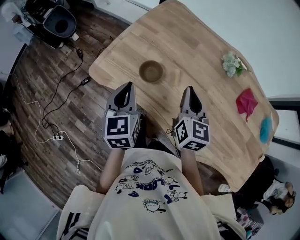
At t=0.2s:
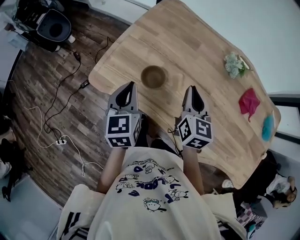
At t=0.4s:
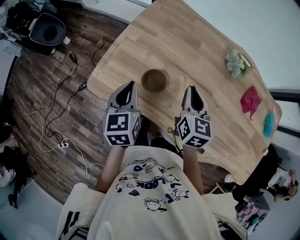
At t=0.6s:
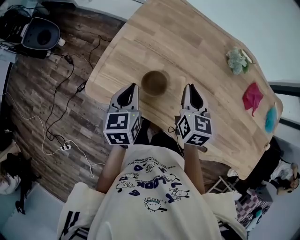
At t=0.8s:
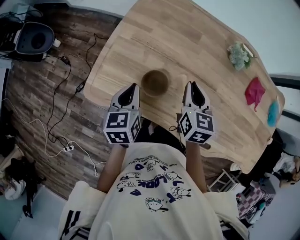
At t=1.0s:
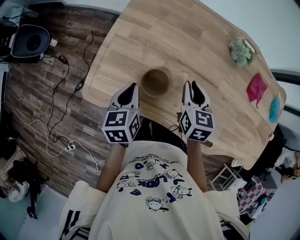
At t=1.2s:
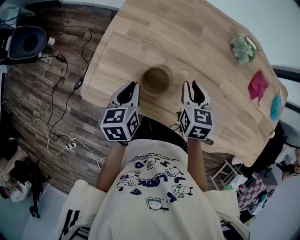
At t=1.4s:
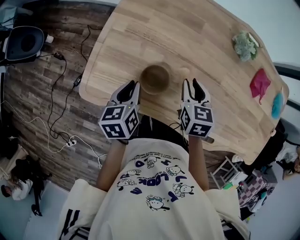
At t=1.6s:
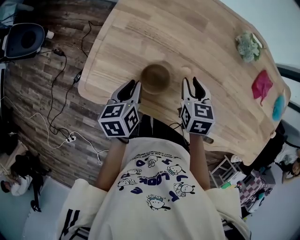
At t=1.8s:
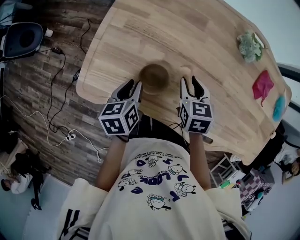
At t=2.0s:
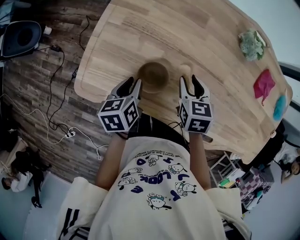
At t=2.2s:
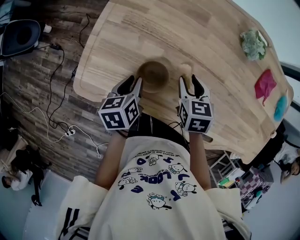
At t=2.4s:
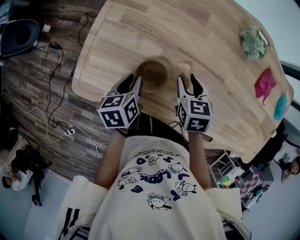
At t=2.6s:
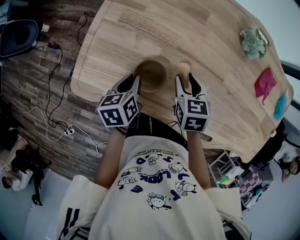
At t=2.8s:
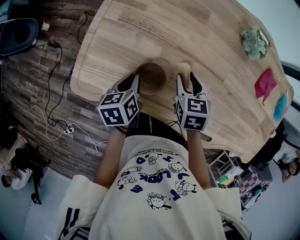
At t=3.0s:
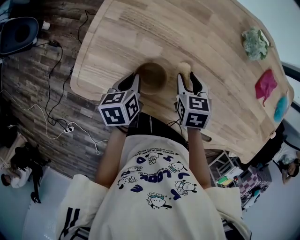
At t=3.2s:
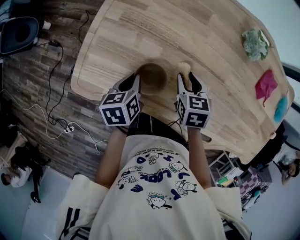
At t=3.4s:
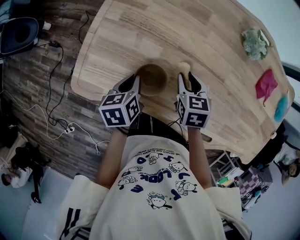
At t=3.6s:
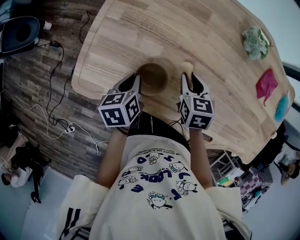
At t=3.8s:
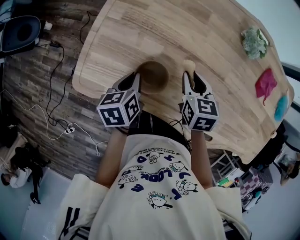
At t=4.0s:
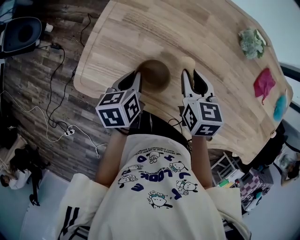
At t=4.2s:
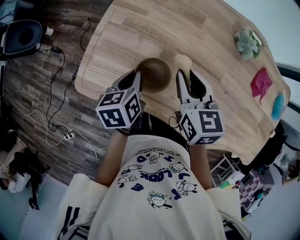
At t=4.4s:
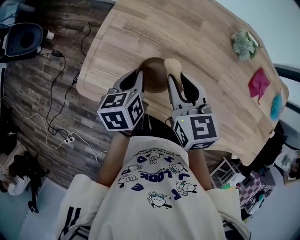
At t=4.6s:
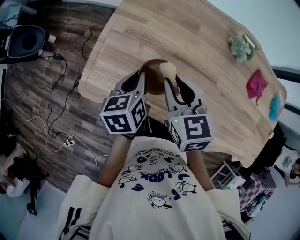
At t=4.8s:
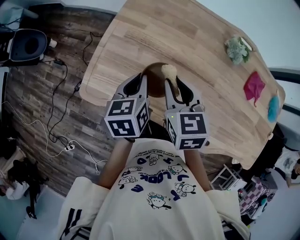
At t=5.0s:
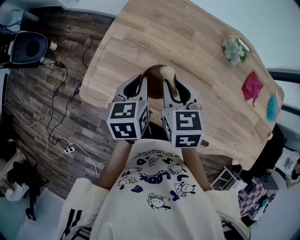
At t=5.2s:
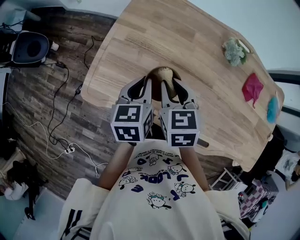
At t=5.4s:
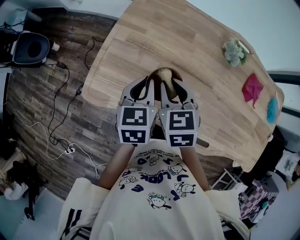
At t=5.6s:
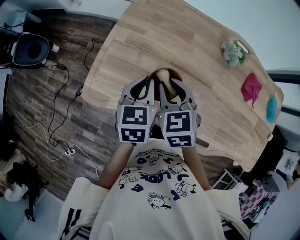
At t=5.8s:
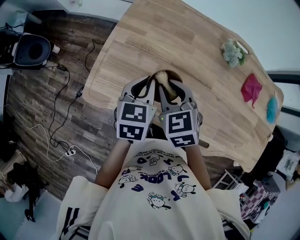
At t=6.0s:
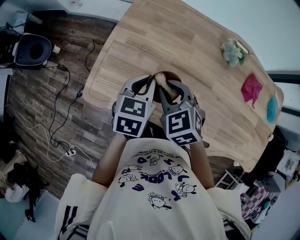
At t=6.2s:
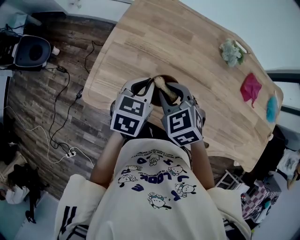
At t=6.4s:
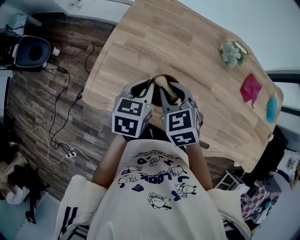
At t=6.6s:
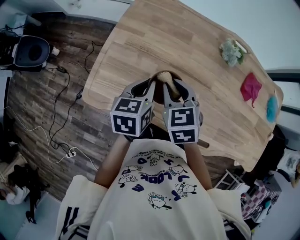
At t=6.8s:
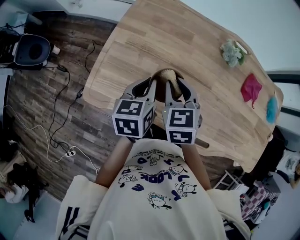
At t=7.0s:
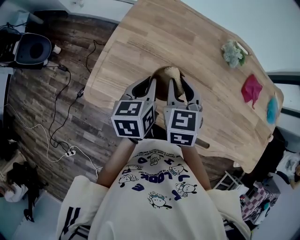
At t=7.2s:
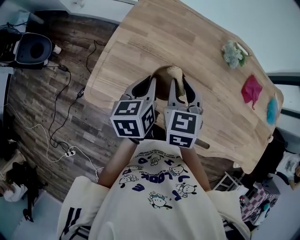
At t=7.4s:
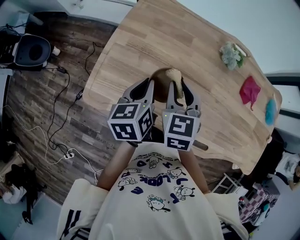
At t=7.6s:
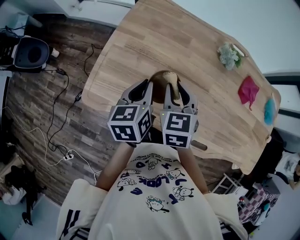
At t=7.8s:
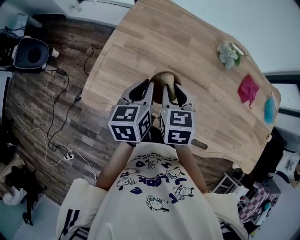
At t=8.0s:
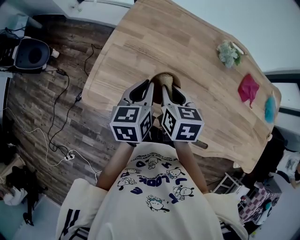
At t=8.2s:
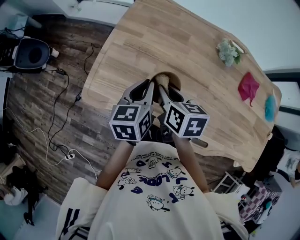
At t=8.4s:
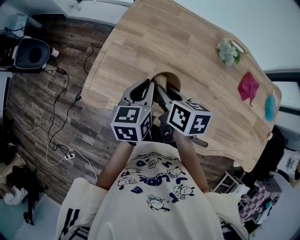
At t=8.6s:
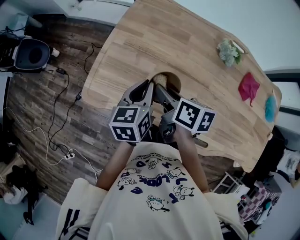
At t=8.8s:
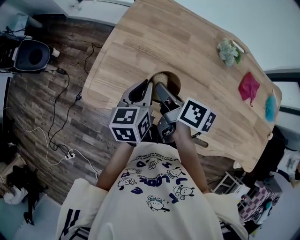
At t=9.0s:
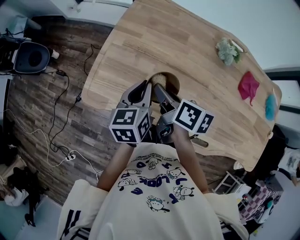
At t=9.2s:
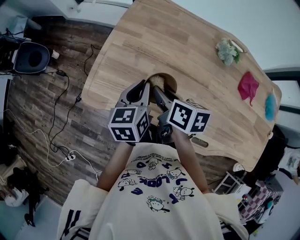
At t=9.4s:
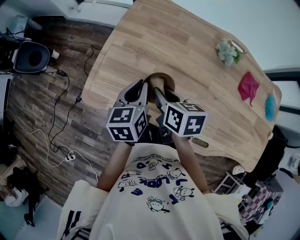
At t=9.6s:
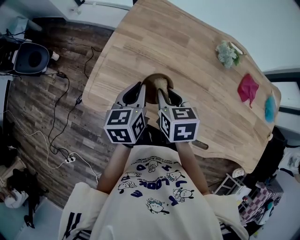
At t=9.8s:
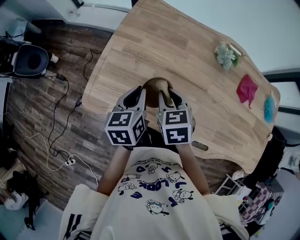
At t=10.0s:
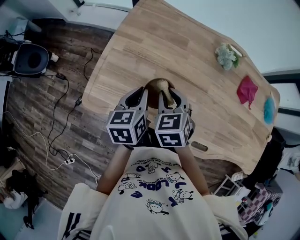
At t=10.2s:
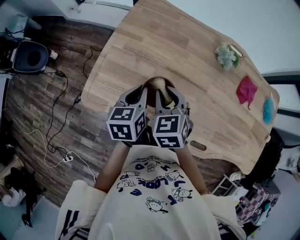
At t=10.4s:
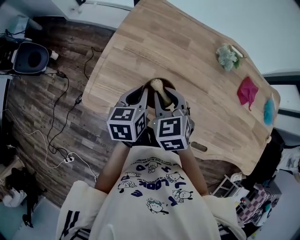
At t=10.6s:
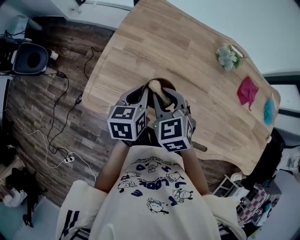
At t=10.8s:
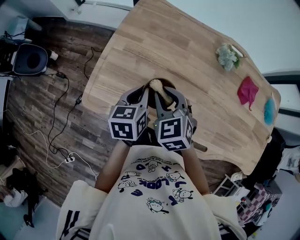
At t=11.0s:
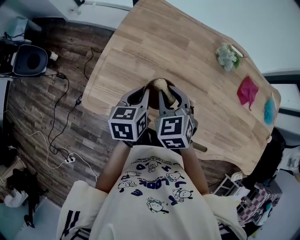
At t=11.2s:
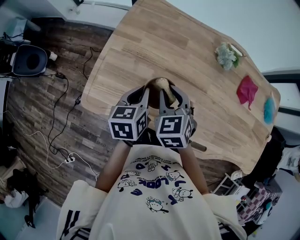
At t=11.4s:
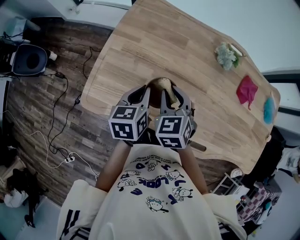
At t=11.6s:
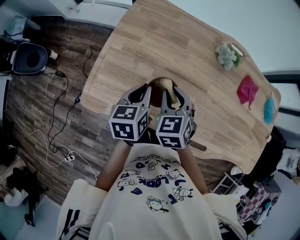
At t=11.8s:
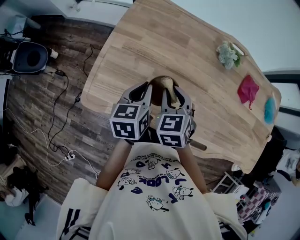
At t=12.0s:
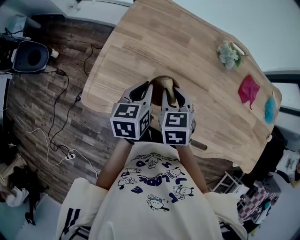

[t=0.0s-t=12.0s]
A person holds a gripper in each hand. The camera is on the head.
t=0.0s to t=1.6s: Both grippers move downward and forward, some 20 cm. The left gripper changes its angle by approximately 40 degrees; the right gripper tips its fingers downward by approximately 30 degrees, and opens up.
t=1.6s to t=3.0s: The left gripper moves roughly 5 cm.
t=3.0s to t=4.4s: The right gripper moves upward and to the left, roughly 20 cm, and changes its angle by about 20 degrees. The left gripper shifts approximately 10 cm upward.
t=4.4s to t=6.0s: The left gripper goes approximately 5 cm upward, and rotates some 30 degrees. Meanwhile the right gripper rotates some 30 degrees.
t=6.0s to t=7.6s: The left gripper rotates some 20 degrees, while the right gripper changes place by roughly 5 cm, and swivels approximately 30 degrees.
t=7.6s to t=9.0s: The right gripper rotates around the line of its fingers by about 60 degrees, clockwise from behind.
t=9.0s to t=10.4s: The right gripper rotates around the line of its fingers by roughly 60 degrees, counterclockwise from behind.
t=10.4s to t=12.0s: The grippers move only a little.

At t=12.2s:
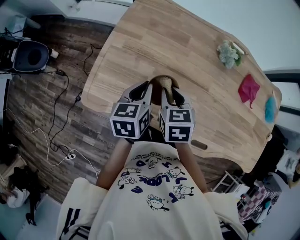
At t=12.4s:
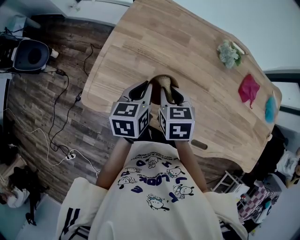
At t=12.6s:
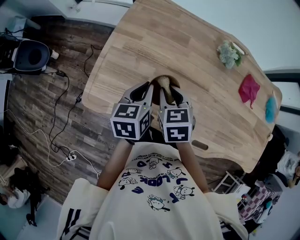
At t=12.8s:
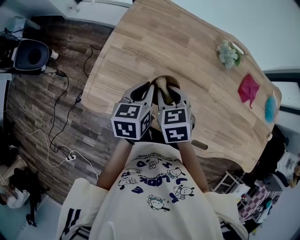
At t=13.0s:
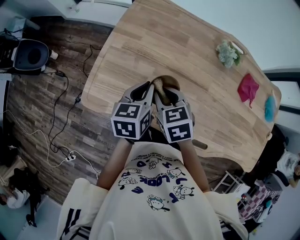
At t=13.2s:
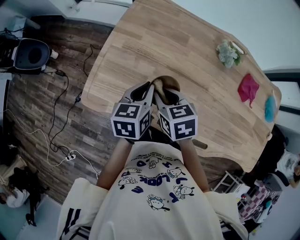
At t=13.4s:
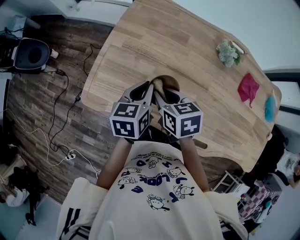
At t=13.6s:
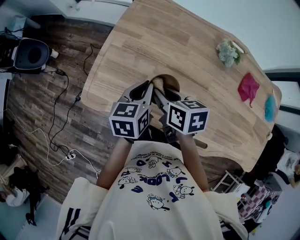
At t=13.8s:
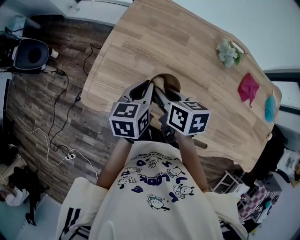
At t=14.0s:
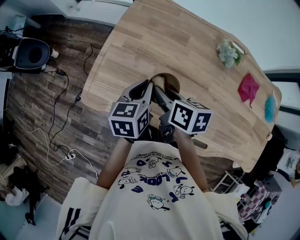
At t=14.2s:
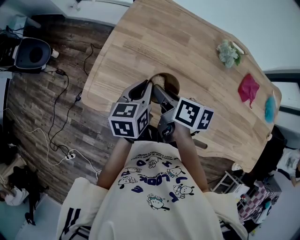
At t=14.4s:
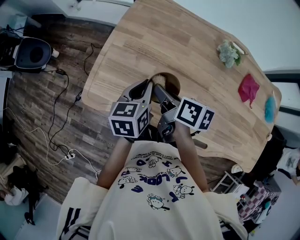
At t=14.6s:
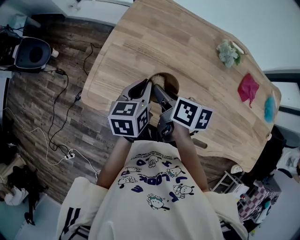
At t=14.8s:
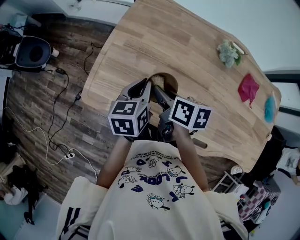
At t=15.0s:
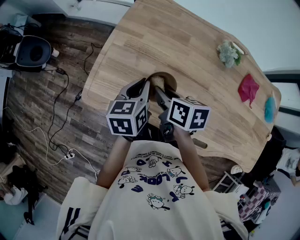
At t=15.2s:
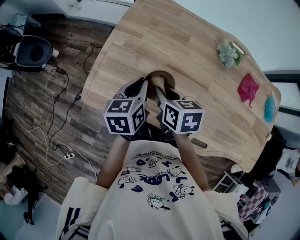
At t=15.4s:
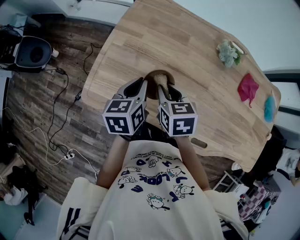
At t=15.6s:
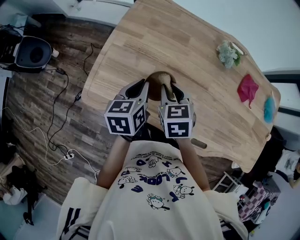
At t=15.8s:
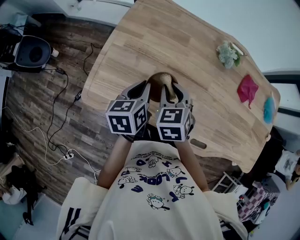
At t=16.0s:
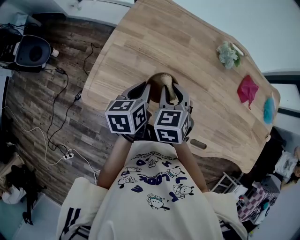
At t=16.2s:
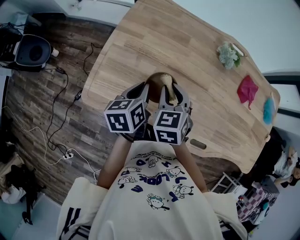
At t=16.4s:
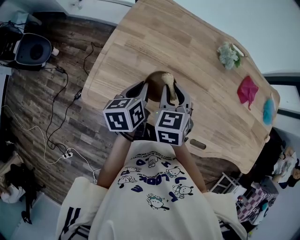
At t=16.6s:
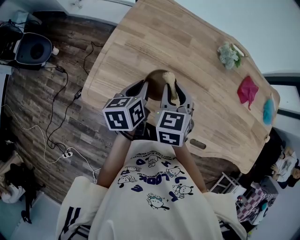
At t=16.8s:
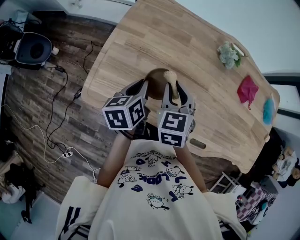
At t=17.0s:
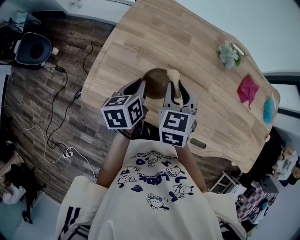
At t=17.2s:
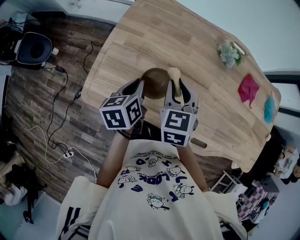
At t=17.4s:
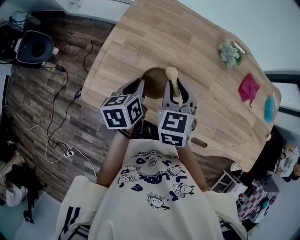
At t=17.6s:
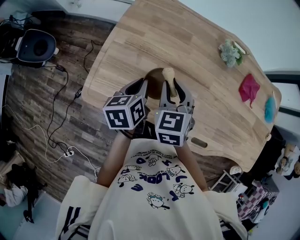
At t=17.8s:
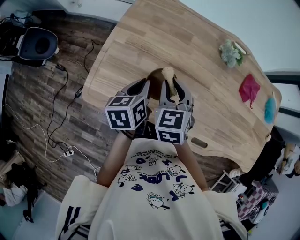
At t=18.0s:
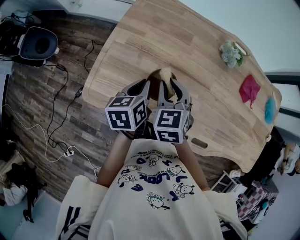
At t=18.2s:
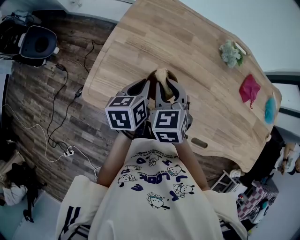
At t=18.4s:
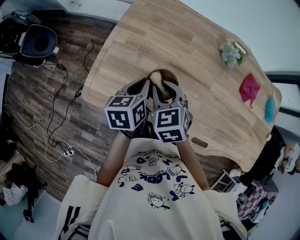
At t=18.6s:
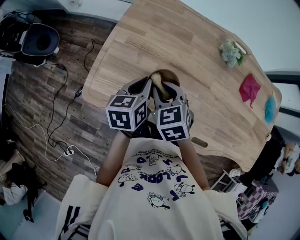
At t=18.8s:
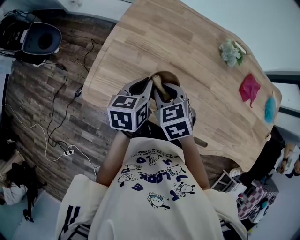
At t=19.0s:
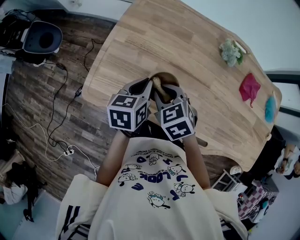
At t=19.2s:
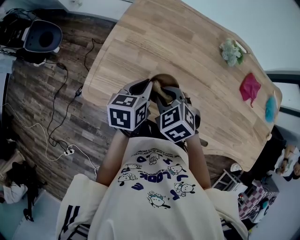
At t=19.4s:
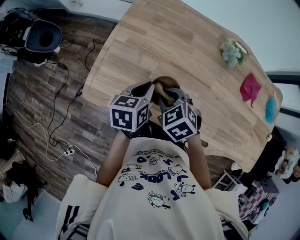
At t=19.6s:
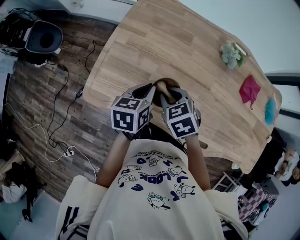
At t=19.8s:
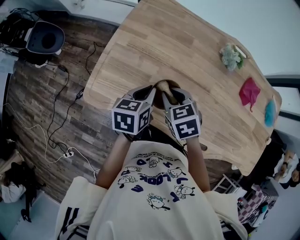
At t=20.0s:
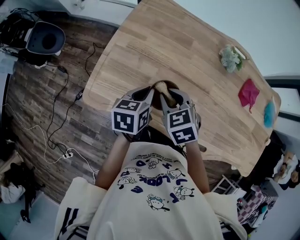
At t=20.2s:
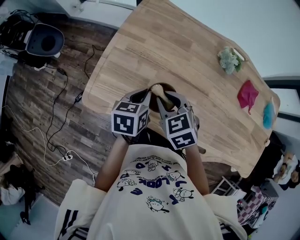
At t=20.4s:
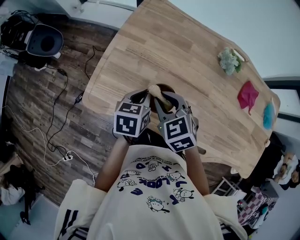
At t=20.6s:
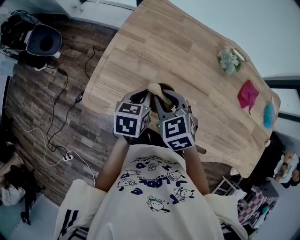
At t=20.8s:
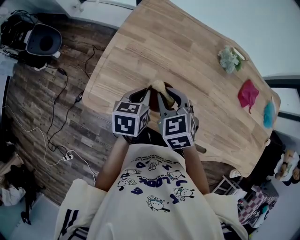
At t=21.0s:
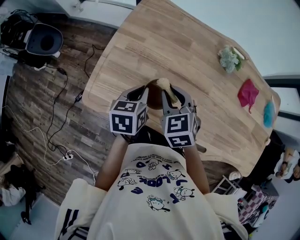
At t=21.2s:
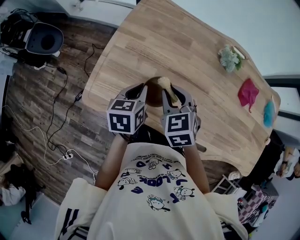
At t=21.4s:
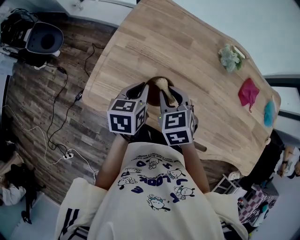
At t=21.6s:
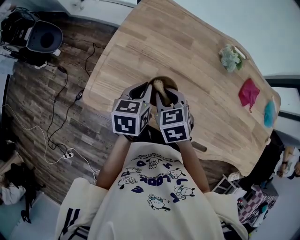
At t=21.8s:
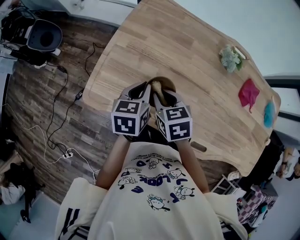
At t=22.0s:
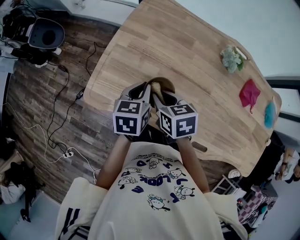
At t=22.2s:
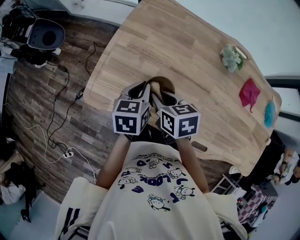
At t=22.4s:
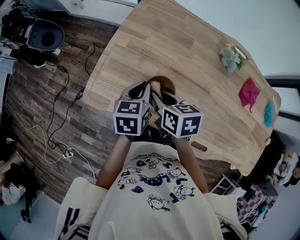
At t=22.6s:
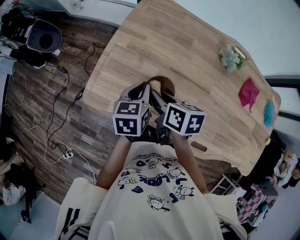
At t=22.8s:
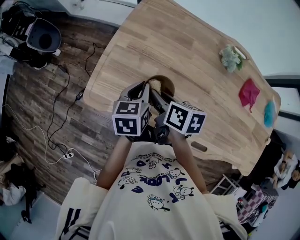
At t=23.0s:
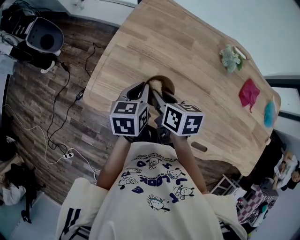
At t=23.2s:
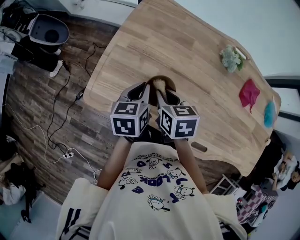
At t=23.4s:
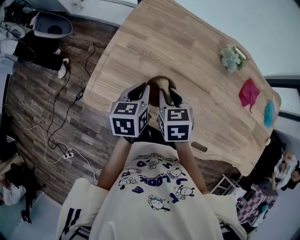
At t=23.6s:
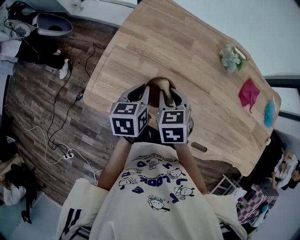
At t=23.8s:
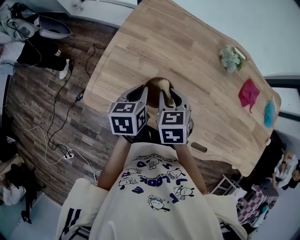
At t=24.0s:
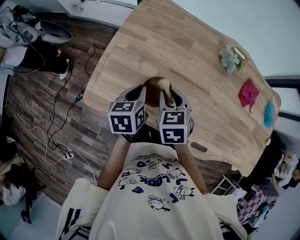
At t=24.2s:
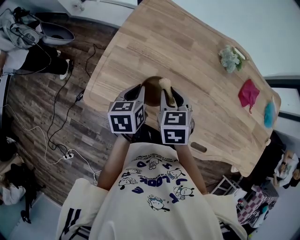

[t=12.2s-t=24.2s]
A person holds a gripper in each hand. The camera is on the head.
t=12.2s to t=13.8s: The right gripper changes its angle by roughly 30 degrees.
t=15.2s to t=16.6s: The right gripper rotates some 40 degrees.
t=16.6s to t=18.2s: The grippers make only small movements.
t=18.2s to t=19.8s: The right gripper swivels some 20 degrees.
t=19.8s to t=21.2s: The grippers make only small movements.
t=21.2s to t=22.6s: The right gripper twists approximately 50 degrees clockwise, seen from behind.
t=22.6s to t=24.2s: The right gripper rotates about 40 degrees.
